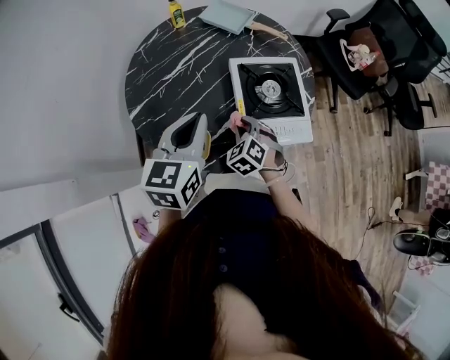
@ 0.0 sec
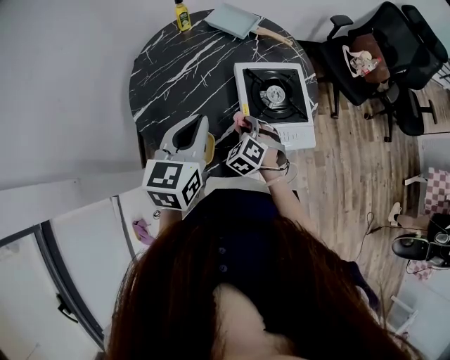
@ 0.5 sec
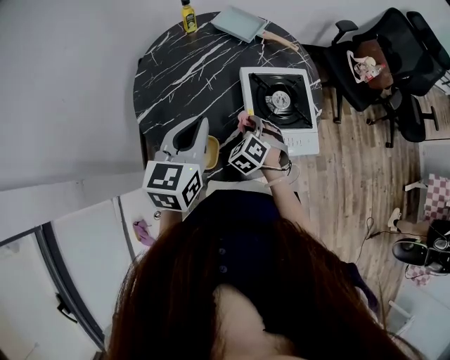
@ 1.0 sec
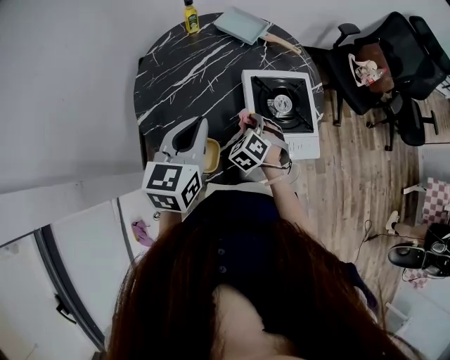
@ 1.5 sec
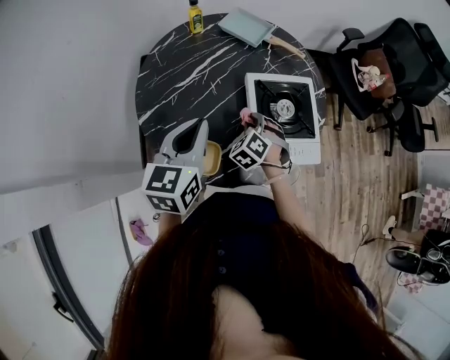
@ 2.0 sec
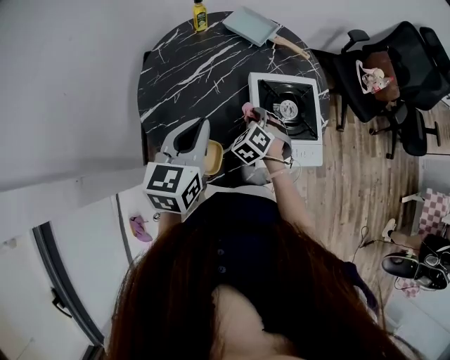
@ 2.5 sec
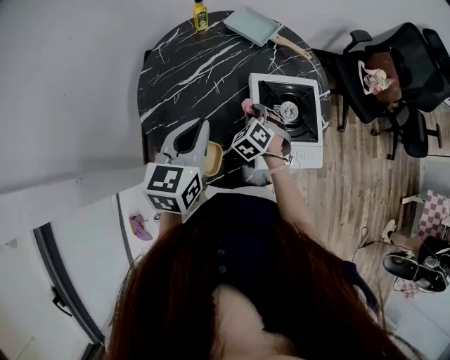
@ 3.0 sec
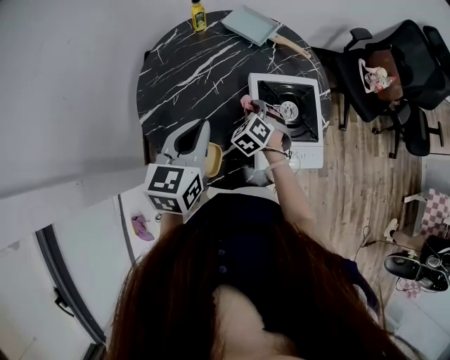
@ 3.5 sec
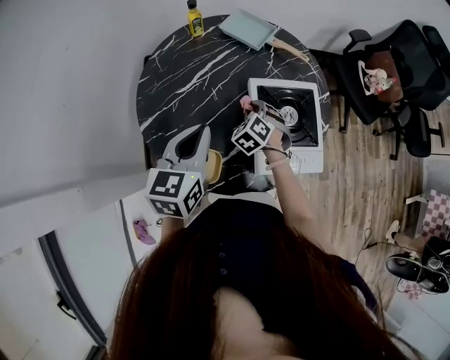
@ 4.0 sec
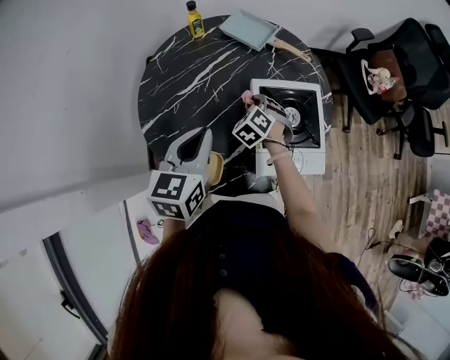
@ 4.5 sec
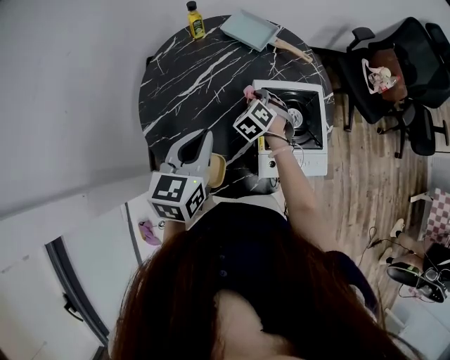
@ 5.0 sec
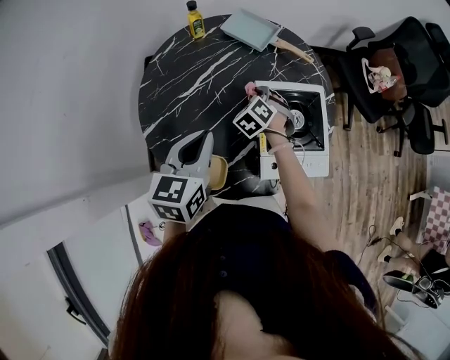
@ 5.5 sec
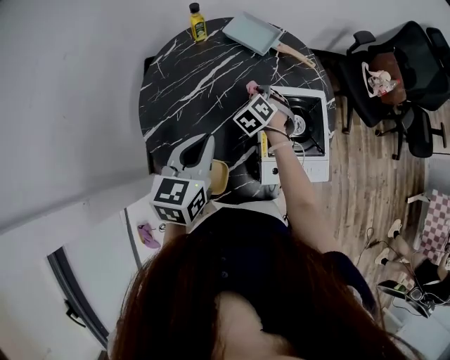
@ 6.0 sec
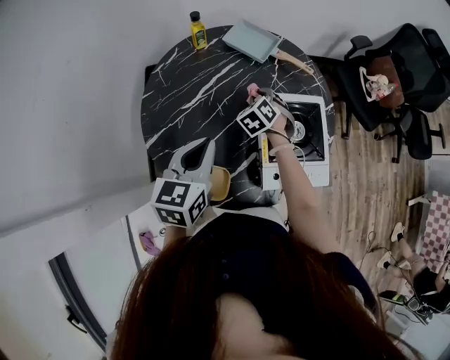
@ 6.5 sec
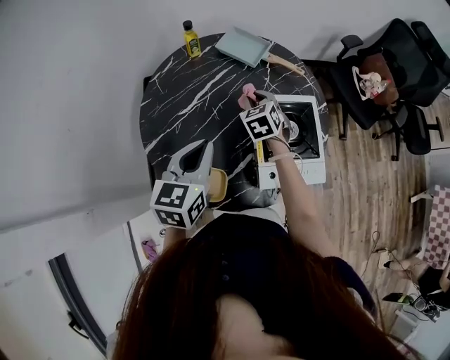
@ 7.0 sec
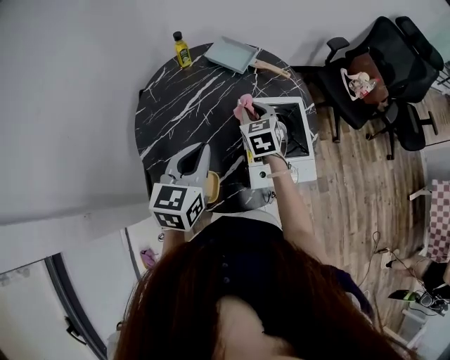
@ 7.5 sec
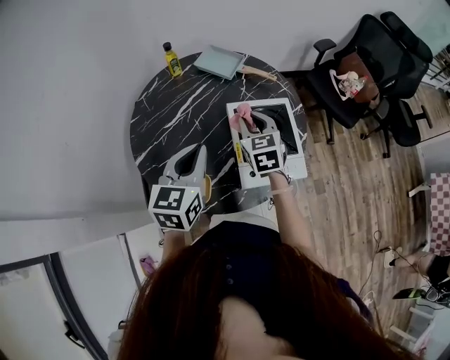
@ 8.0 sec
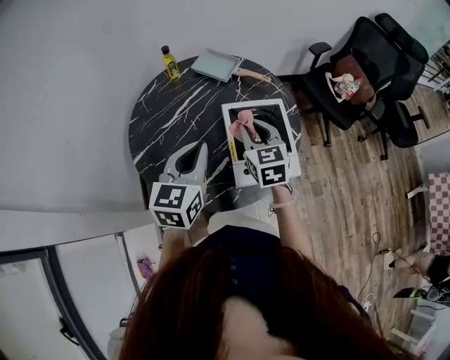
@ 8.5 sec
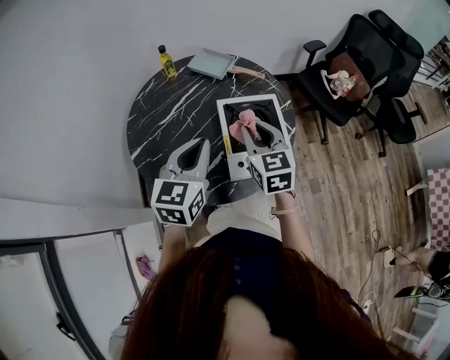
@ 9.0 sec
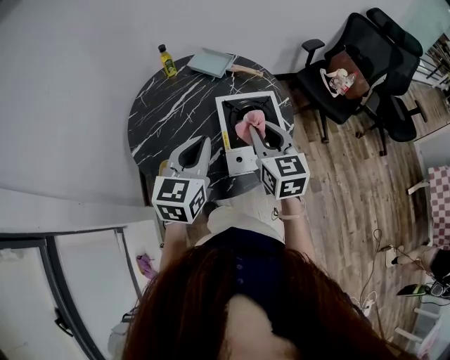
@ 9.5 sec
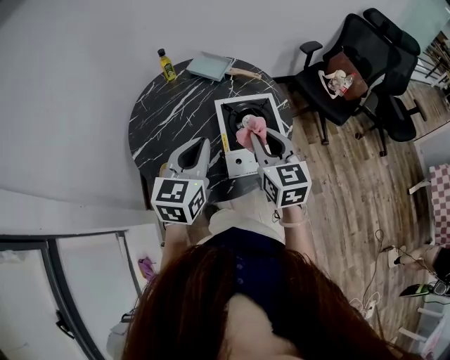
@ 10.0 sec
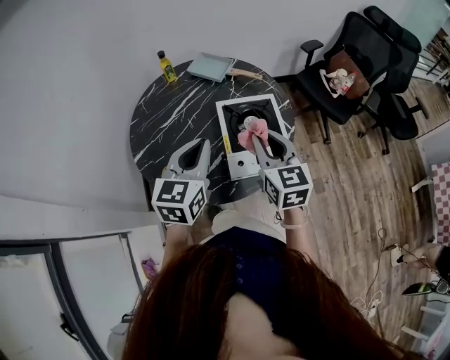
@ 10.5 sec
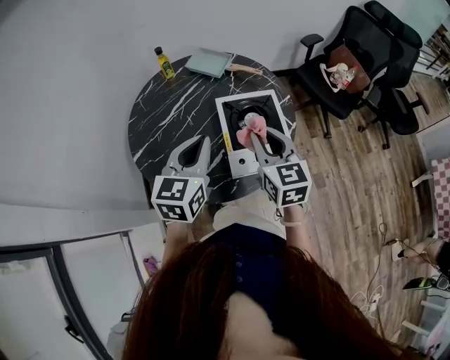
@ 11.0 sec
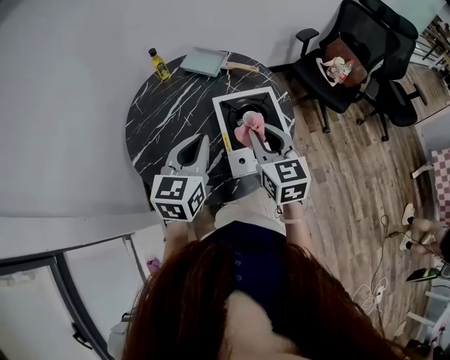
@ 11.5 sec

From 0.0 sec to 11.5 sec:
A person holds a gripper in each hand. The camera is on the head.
From 0.0 sec to 2.0 sec: The left gripper moves to the left, roughly 5 cm. Meanwhile the right gripper travels forward by about 5 cm.
From 2.0 sec to 4.0 sec: The right gripper heads forward, covering about 5 cm.
From 4.0 sec to 6.0 sec: The right gripper heads forward, covering roughly 10 cm.
From 6.0 sec to 7.5 sec: The right gripper is displaced upward by approximately 10 cm, and changes its angle by some 40 degrees. The left gripper shifts by approximately 5 cm.
From 7.5 sec to 9.5 sec: The right gripper goes roughly 25 cm backward, upward and to the right, and turns by some 30 degrees. The left gripper goes approximately 15 cm to the right, backward and upward.
From 9.5 sec to 11.5 sec: The grippers make only small movements.

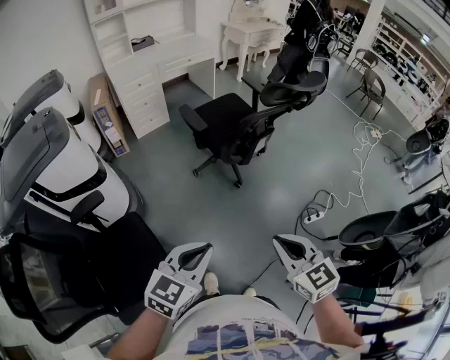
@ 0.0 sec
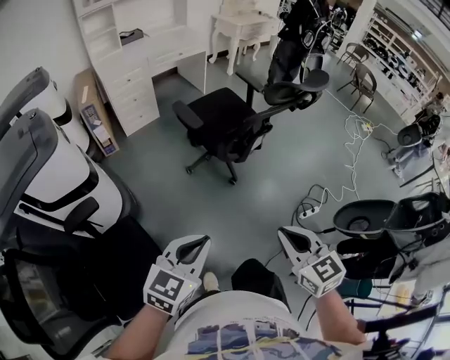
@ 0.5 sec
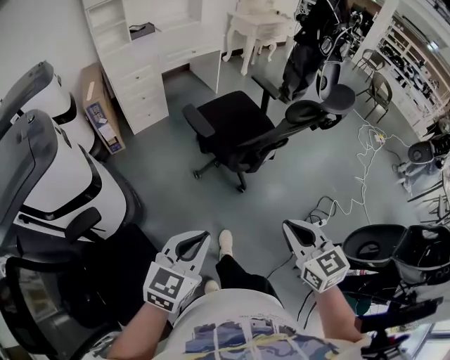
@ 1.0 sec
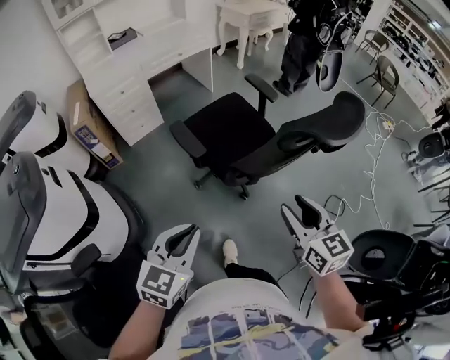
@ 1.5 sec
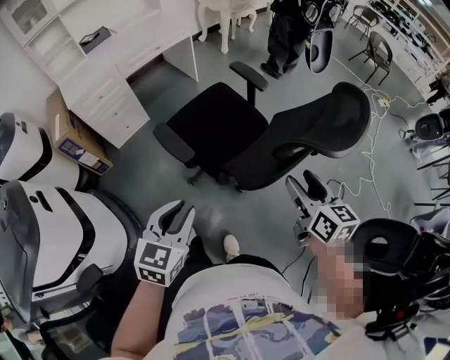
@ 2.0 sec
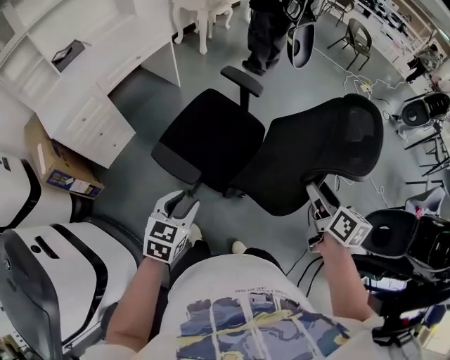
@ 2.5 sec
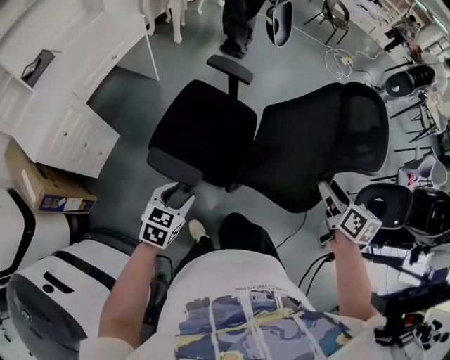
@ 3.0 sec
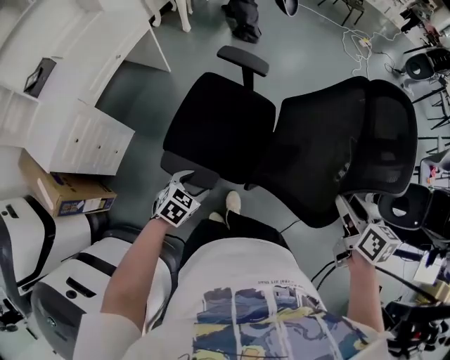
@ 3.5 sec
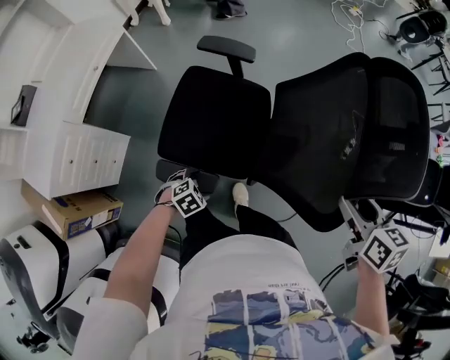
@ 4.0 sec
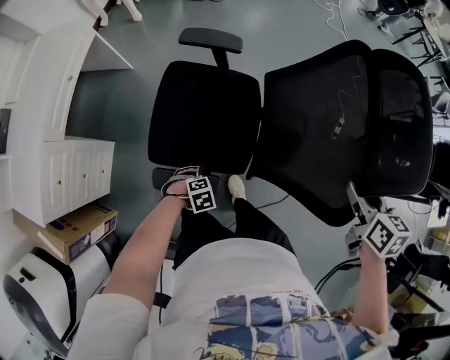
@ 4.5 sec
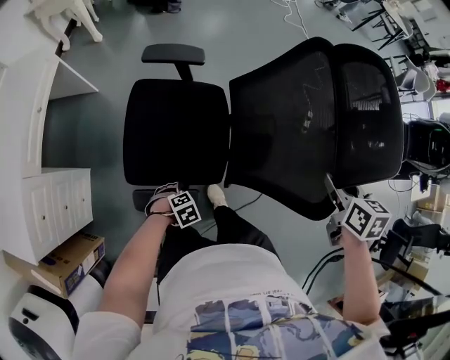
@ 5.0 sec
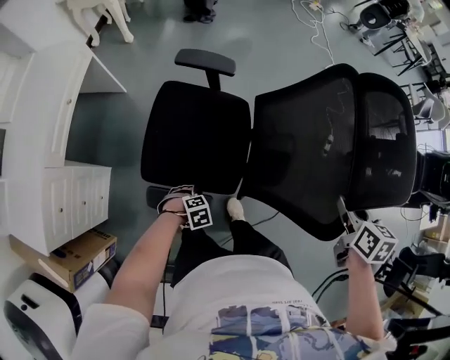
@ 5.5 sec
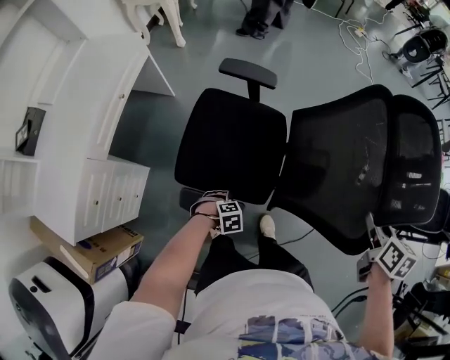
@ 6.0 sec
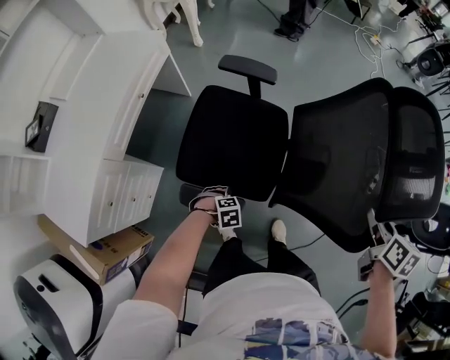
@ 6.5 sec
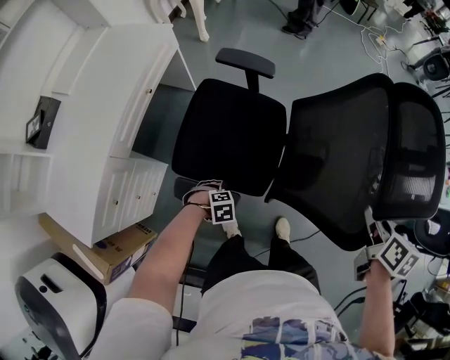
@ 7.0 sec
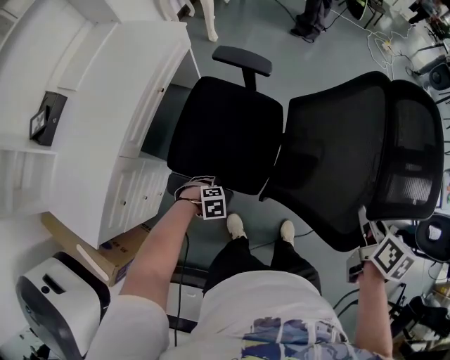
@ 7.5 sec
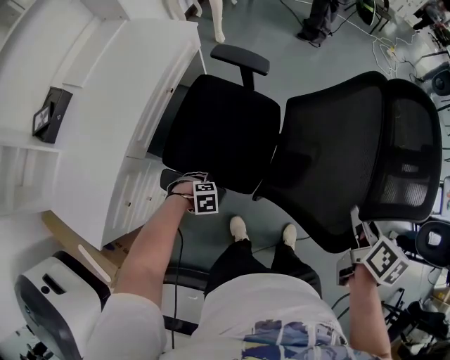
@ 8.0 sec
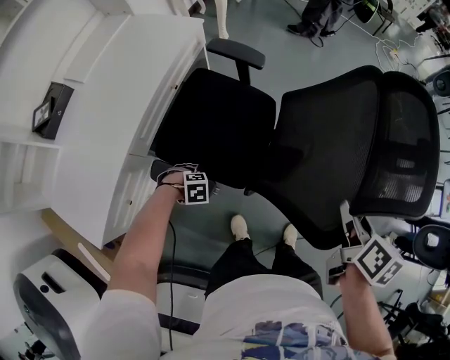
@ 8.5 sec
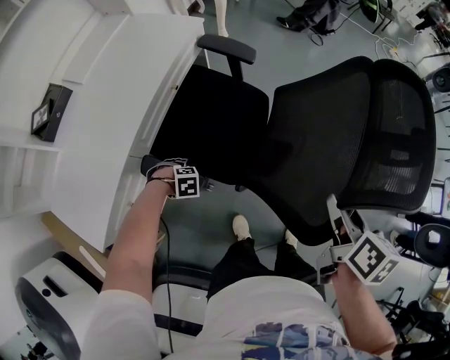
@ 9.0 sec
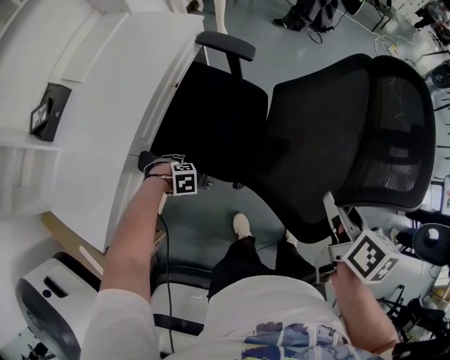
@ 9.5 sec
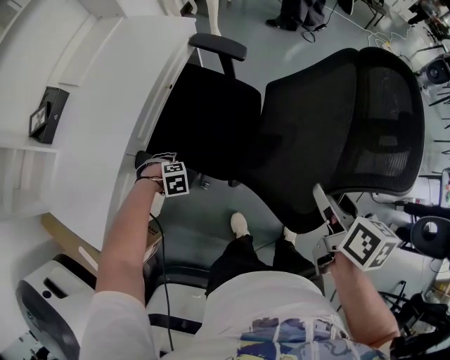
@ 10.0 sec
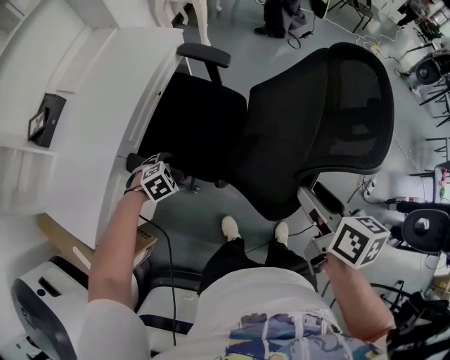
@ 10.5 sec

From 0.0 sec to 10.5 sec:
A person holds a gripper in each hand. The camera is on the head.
From 0.0 sec to 2.0 sec: The two grippers travel together, forward, about 40 cm. The right gripper turns by roughly 40 degrees, and opens its fingers.
From 2.0 sec to 4.0 sec: The right gripper changes its angle by roughly 40 degrees, while the left gripper travels downward by some 35 cm, tips its fingers downward by approximately 40 degrees, and opens up.
From 4.0 sec to 6.5 sec: The left gripper shifts by approximately 20 cm, and swivels roughly 20 degrees. The right gripper ends up roughly 20 cm from where it was.
From 6.5 sec to 8.5 sec: The left gripper changes place by roughly 25 cm; the right gripper changes place by approximately 25 cm.
From 8.5 sec to 10.5 sec: The left gripper is displaced upward by some 10 cm, and rotates approximately 30 degrees. Meanwhile the right gripper ends up about 5 cm from where it was.

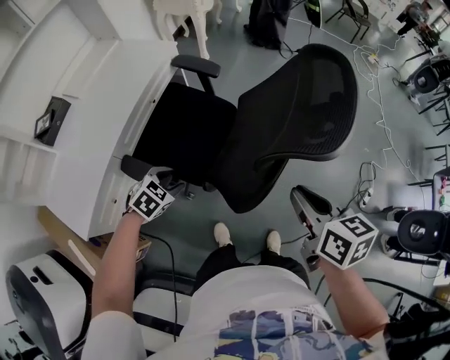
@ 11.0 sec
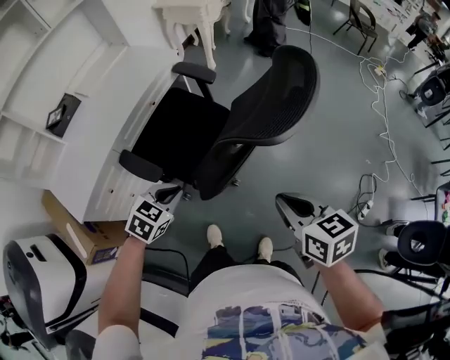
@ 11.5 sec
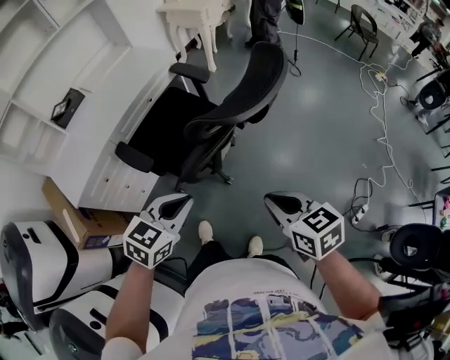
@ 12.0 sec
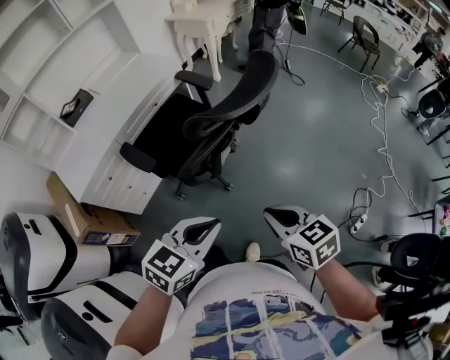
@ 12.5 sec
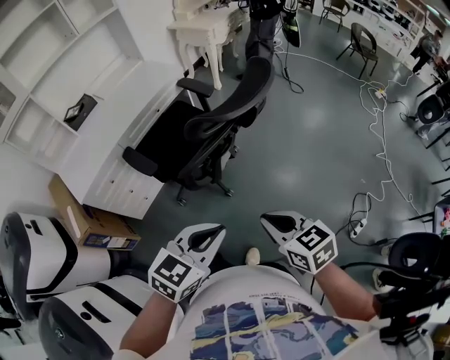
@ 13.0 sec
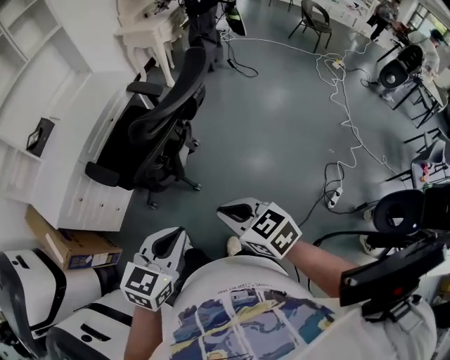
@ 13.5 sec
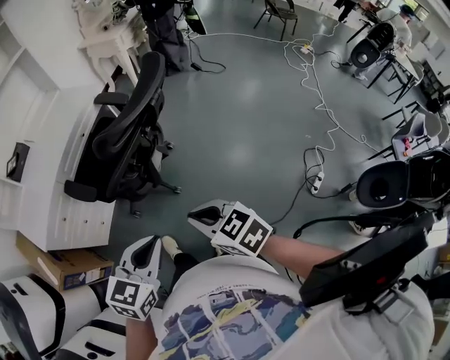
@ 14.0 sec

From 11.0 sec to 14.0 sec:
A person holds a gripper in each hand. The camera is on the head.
From 11.0 sec to 12.5 sec: The right gripper is displaced backward and to the right by about 15 cm, and rotates some 30 degrees, while the left gripper moves to the right, upward and backward, some 40 cm, points its fingers approximately 30 degrees further upward, and closes up.
From 12.5 sec to 14.0 sec: The grippers move only a little.

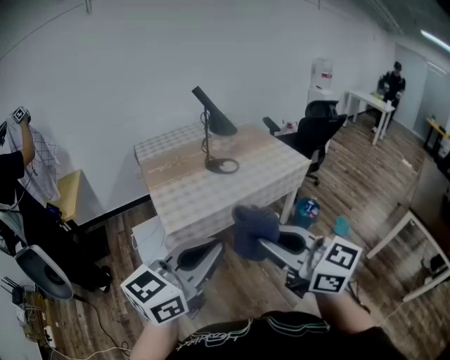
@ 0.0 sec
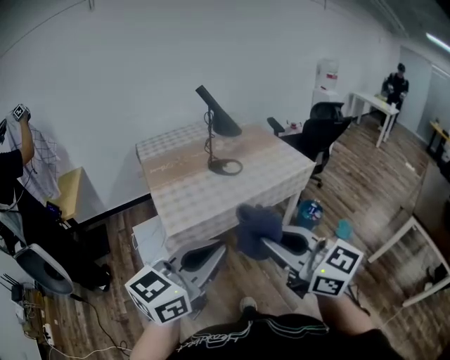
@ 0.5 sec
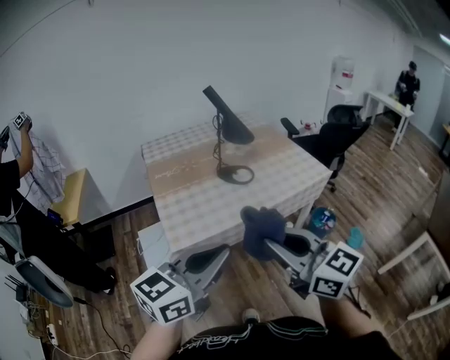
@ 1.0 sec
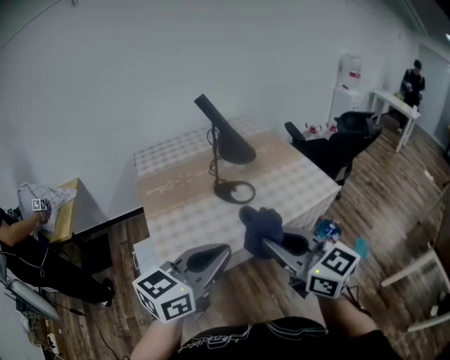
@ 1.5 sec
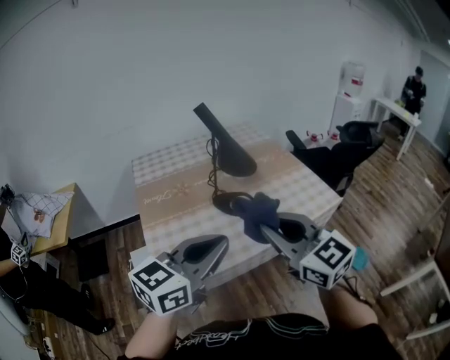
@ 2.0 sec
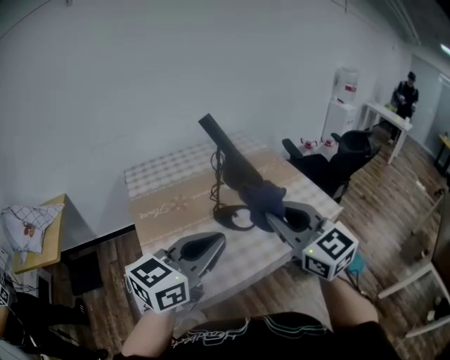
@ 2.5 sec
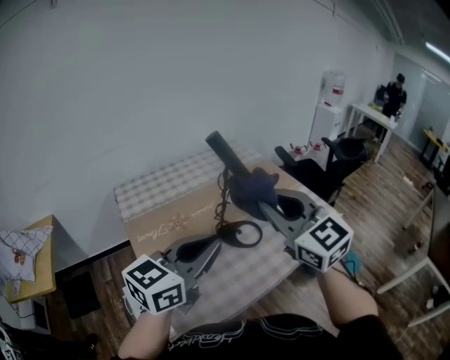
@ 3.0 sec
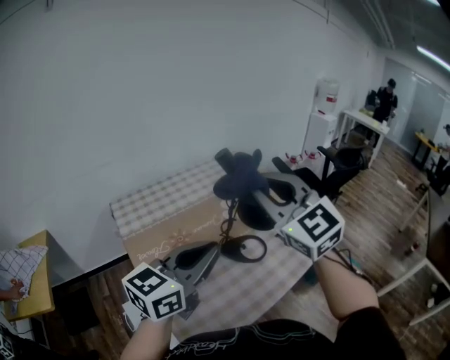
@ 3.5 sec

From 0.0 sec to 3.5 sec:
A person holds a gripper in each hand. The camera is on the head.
From 0.0 sec to 2.0 sec: The two grippers go some 40 cm forward.
From 2.0 sec to 3.5 sec: The left gripper shifts roughly 25 cm forward and to the left. The right gripper moves forward, to the left and upward, approximately 30 cm, and changes its angle by some 30 degrees.
